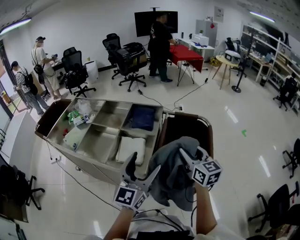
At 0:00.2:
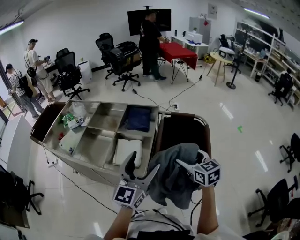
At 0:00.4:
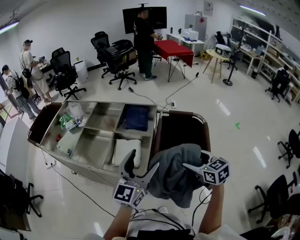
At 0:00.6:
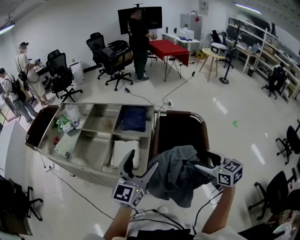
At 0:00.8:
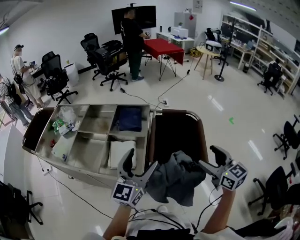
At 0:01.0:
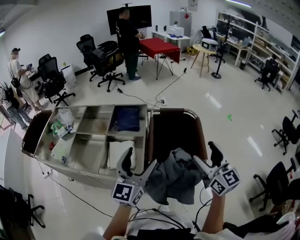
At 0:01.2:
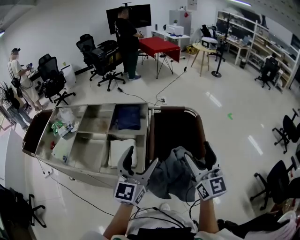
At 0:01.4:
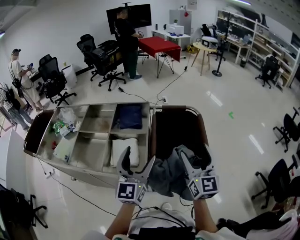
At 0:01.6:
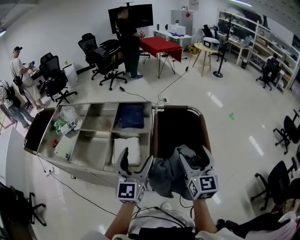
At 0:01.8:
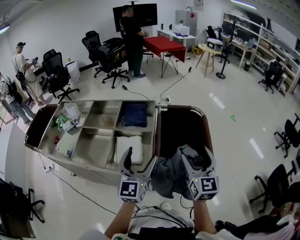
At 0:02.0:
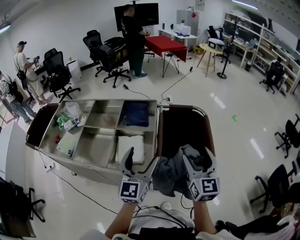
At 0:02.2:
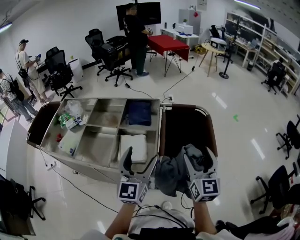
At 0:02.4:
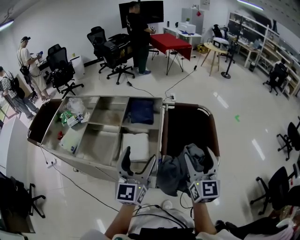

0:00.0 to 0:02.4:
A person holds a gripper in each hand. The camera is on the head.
0:00.0 to 0:01.2: The right gripper shifts roughly 10 cm upward and backward, and swivels about 30 degrees.
0:01.2 to 0:02.4: Both grippers travel together to the left, approximately 5 cm.

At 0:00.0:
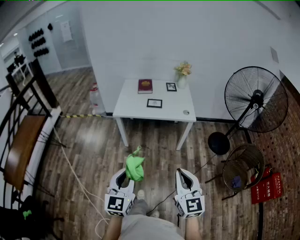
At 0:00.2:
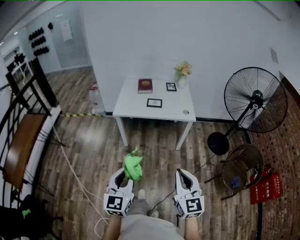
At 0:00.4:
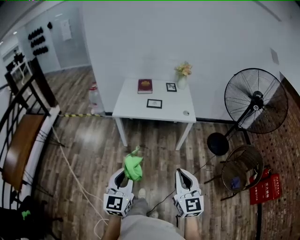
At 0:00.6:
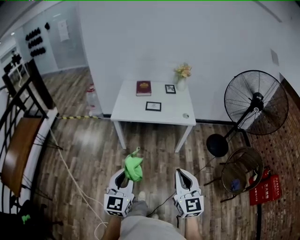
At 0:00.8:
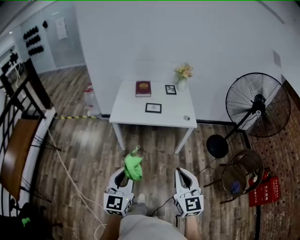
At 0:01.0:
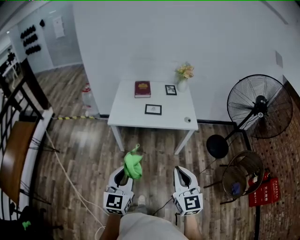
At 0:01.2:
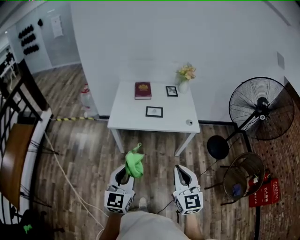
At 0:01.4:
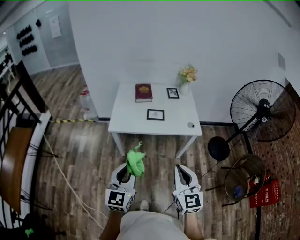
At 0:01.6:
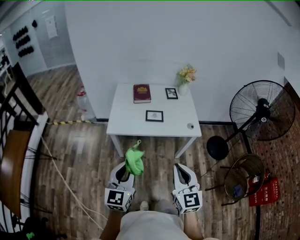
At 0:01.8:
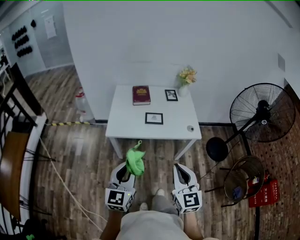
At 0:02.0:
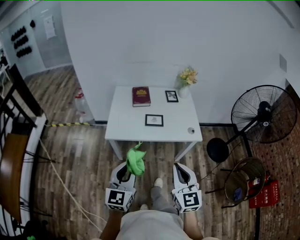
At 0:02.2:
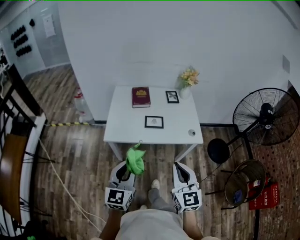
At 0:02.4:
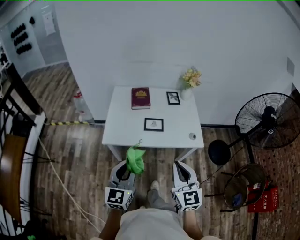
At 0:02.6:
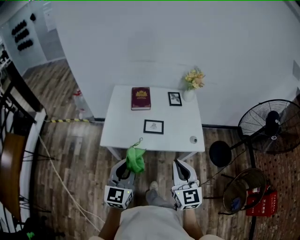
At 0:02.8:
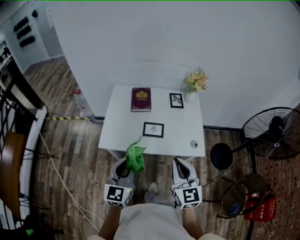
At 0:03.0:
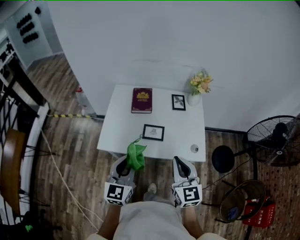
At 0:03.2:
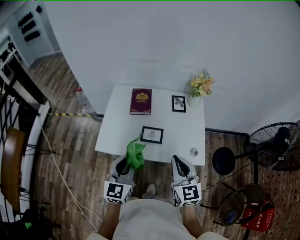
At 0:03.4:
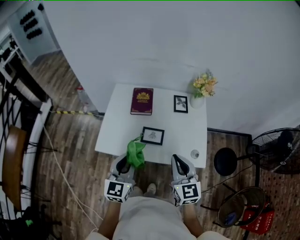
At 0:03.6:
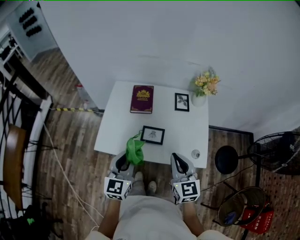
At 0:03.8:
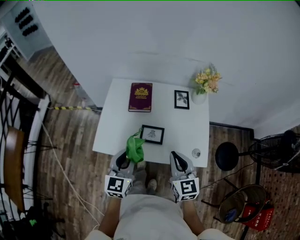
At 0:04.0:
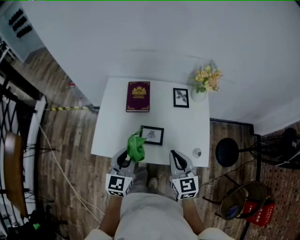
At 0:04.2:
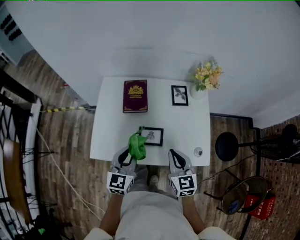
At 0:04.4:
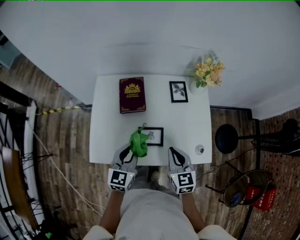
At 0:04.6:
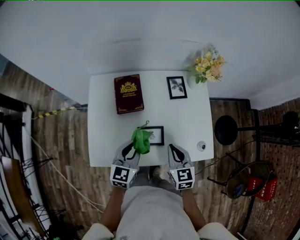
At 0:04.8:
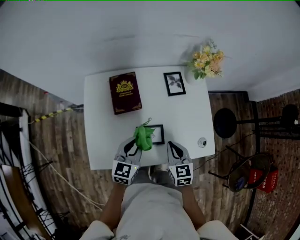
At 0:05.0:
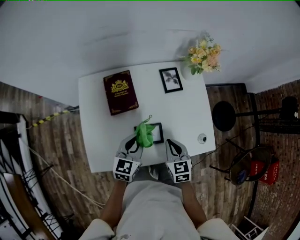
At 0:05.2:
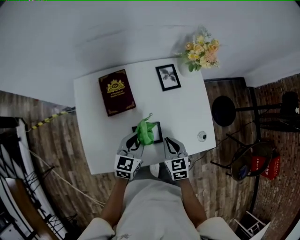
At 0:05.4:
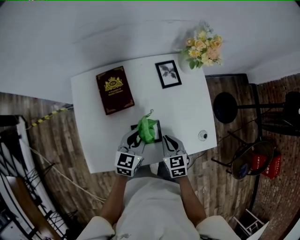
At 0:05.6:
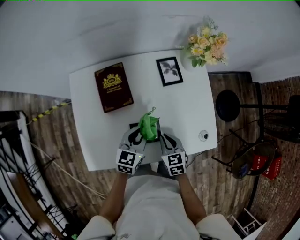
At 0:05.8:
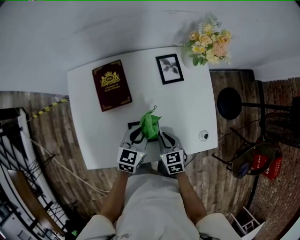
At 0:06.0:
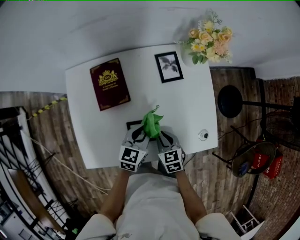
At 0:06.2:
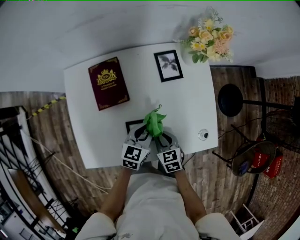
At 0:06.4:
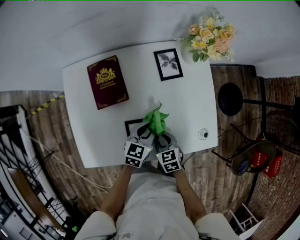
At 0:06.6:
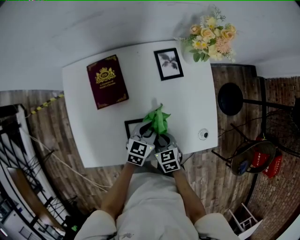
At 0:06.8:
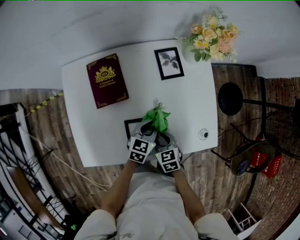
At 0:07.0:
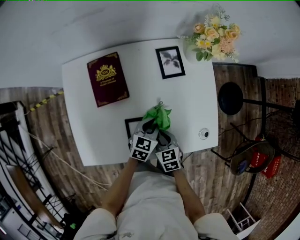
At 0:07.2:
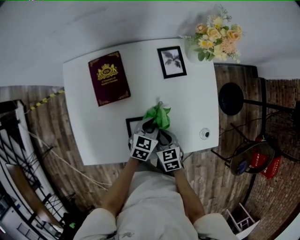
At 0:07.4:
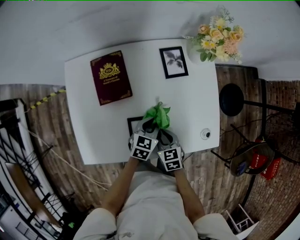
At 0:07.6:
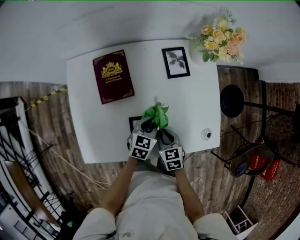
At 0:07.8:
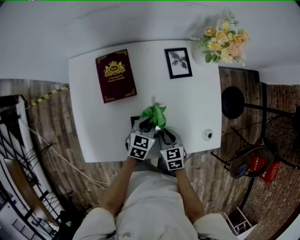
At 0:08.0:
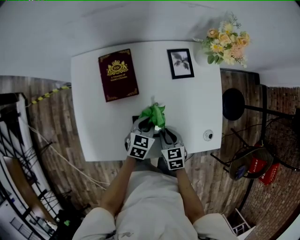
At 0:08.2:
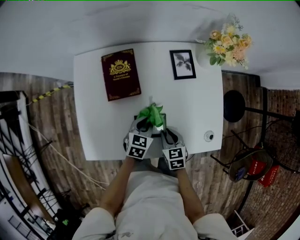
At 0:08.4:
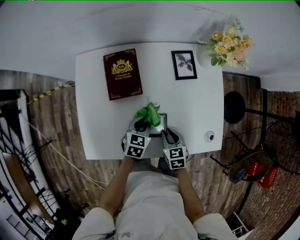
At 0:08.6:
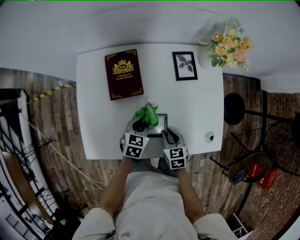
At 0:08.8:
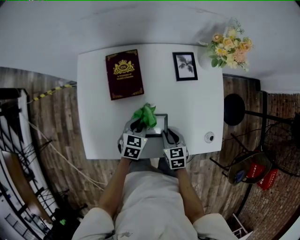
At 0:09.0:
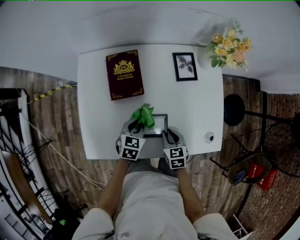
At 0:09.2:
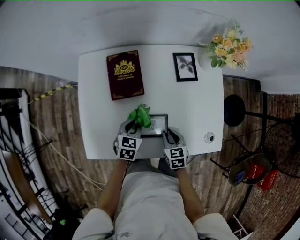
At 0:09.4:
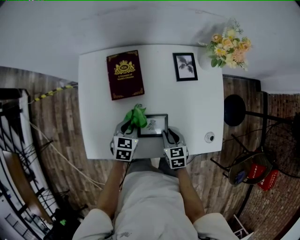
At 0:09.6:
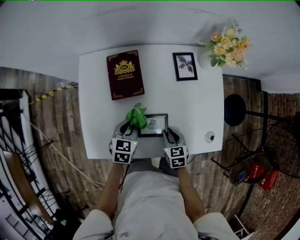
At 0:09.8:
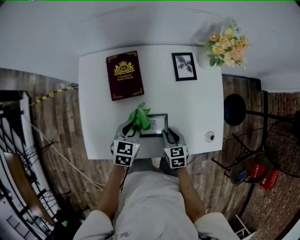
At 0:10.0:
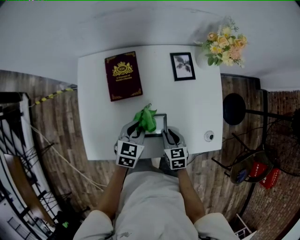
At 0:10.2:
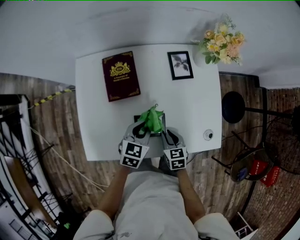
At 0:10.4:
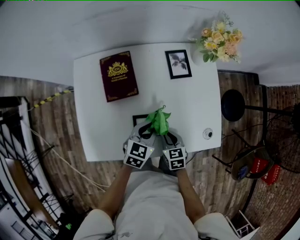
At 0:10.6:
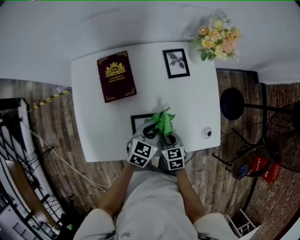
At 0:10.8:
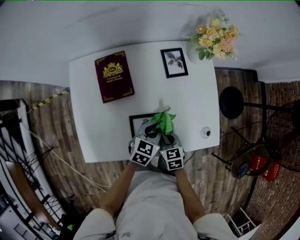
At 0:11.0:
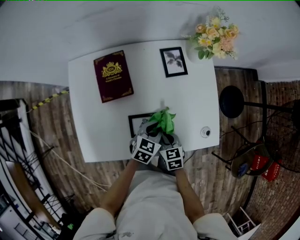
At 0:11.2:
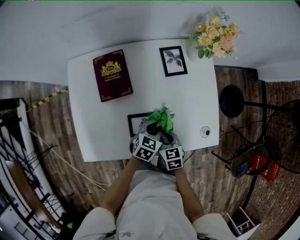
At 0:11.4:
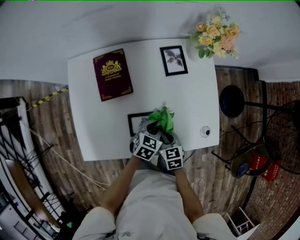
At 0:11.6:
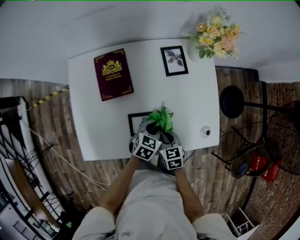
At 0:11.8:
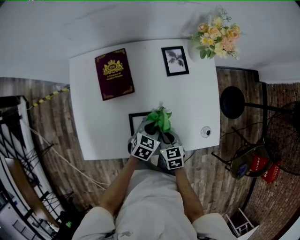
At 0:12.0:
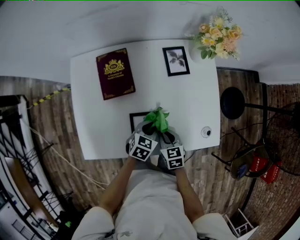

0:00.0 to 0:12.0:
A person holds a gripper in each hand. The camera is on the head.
0:00.0 to 0:01.6: The two grippers go approximately 25 cm forward.
0:01.6 to 0:03.0: The two grippers go approximately 25 cm forward.
0:03.0 to 0:04.4: Both grippers move forward and downward, about 25 cm.
0:04.4 to 0:06.0: The left gripper moves downward, forward and to the right, some 20 cm, and swivels some 20 degrees. The right gripper travels downward by about 20 cm, and changes its angle by approximately 20 degrees.
0:06.0 to 0:07.6: The left gripper moves downward, about 5 cm.
0:07.6 to 0:09.0: The left gripper goes some 10 cm to the left.
0:09.0 to 0:10.4: The left gripper is displaced to the right and upward by some 10 cm.
0:10.4 to 0:12.0: The left gripper is displaced downward by roughly 5 cm.

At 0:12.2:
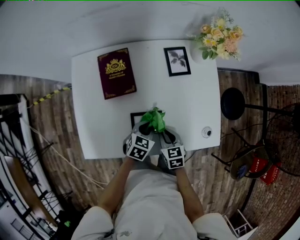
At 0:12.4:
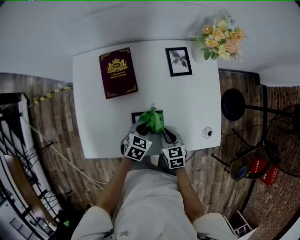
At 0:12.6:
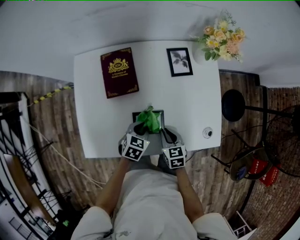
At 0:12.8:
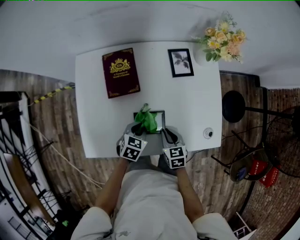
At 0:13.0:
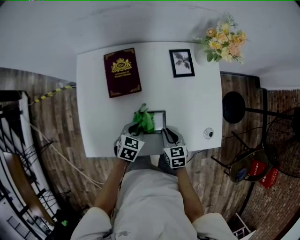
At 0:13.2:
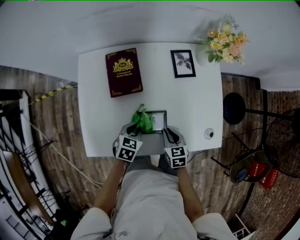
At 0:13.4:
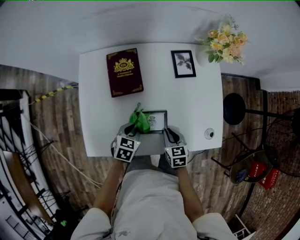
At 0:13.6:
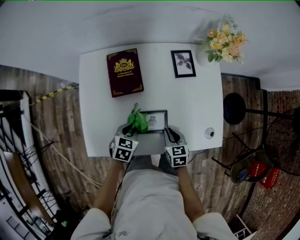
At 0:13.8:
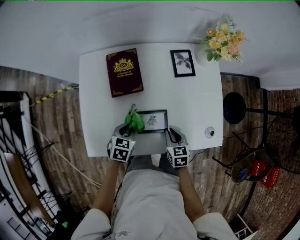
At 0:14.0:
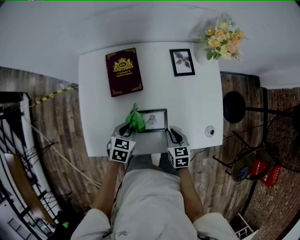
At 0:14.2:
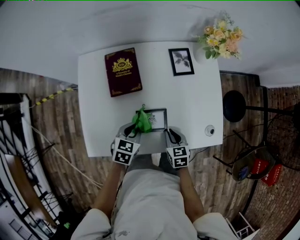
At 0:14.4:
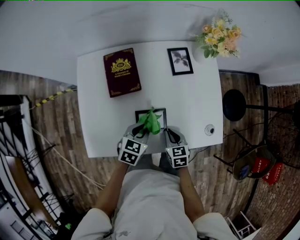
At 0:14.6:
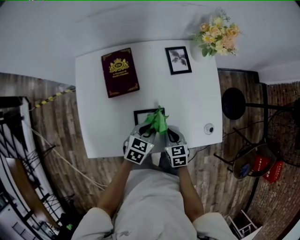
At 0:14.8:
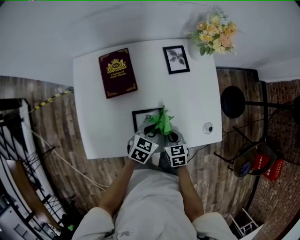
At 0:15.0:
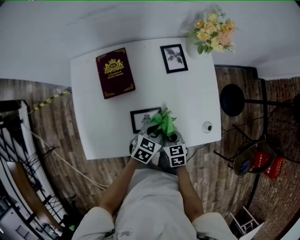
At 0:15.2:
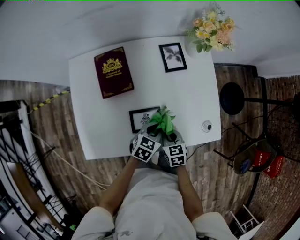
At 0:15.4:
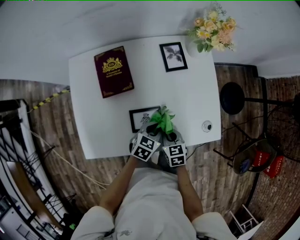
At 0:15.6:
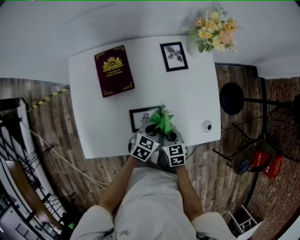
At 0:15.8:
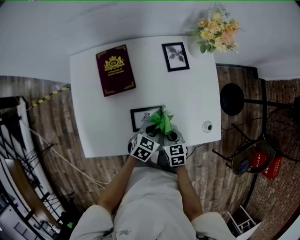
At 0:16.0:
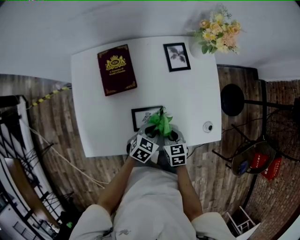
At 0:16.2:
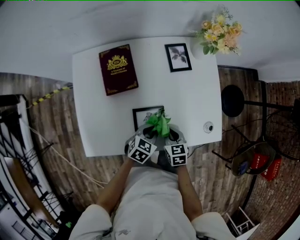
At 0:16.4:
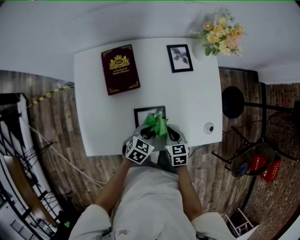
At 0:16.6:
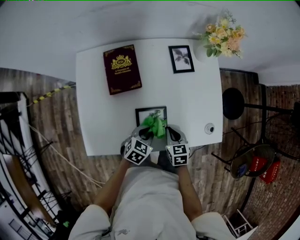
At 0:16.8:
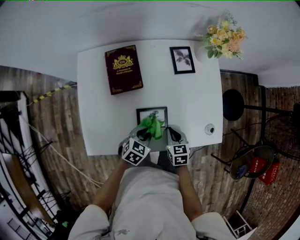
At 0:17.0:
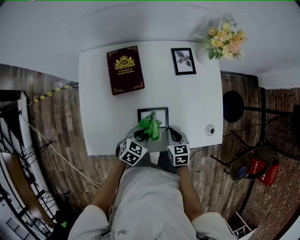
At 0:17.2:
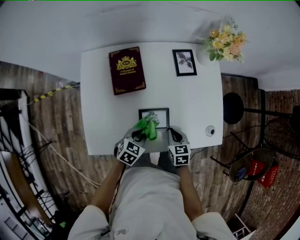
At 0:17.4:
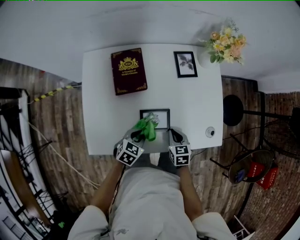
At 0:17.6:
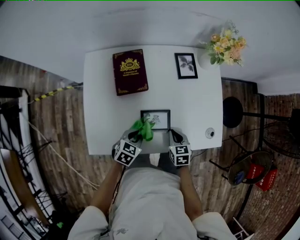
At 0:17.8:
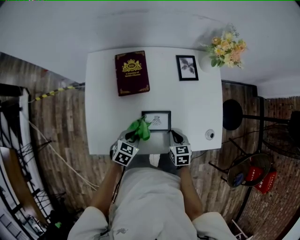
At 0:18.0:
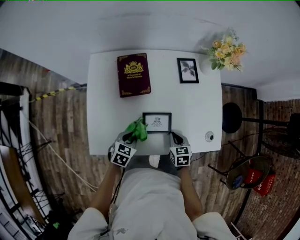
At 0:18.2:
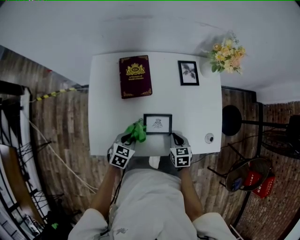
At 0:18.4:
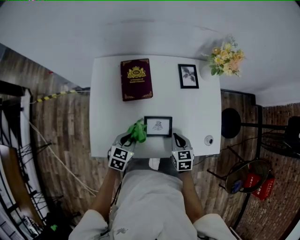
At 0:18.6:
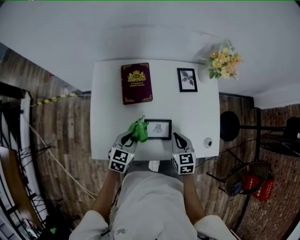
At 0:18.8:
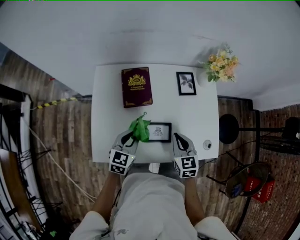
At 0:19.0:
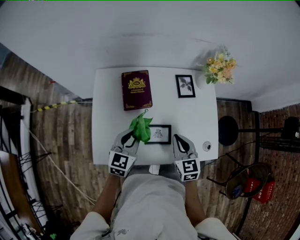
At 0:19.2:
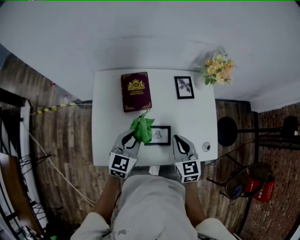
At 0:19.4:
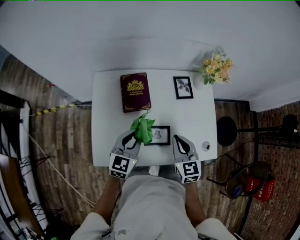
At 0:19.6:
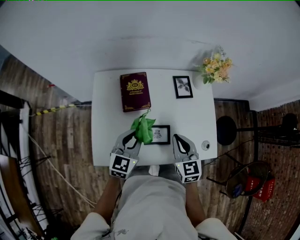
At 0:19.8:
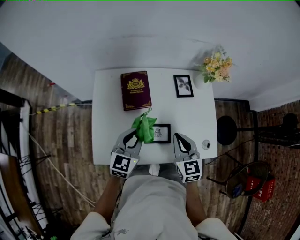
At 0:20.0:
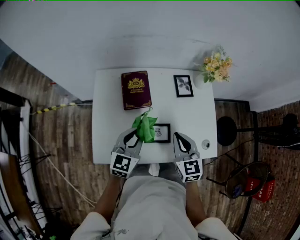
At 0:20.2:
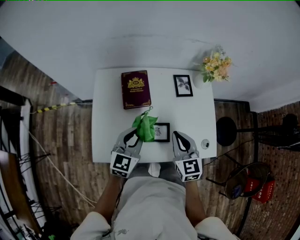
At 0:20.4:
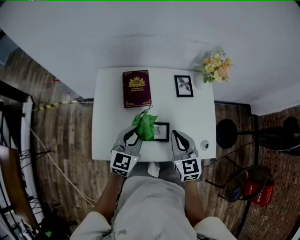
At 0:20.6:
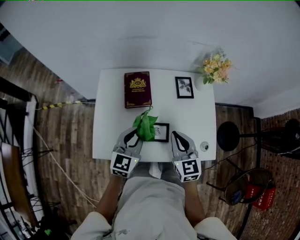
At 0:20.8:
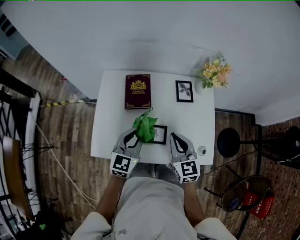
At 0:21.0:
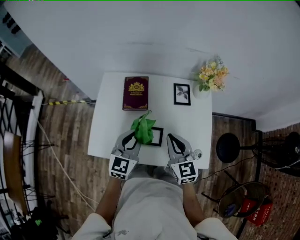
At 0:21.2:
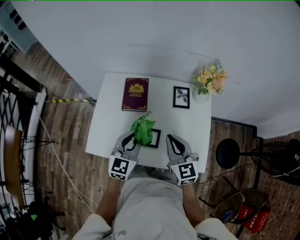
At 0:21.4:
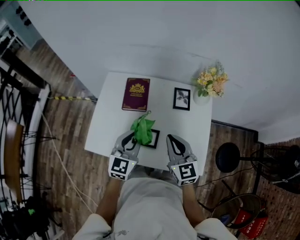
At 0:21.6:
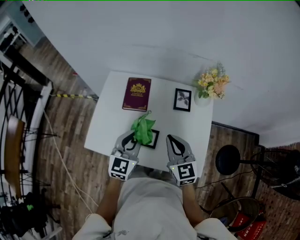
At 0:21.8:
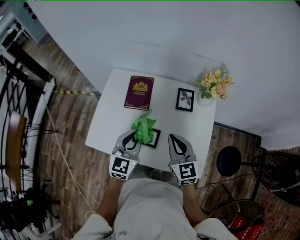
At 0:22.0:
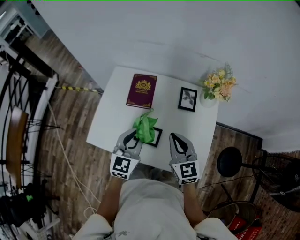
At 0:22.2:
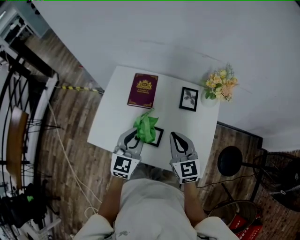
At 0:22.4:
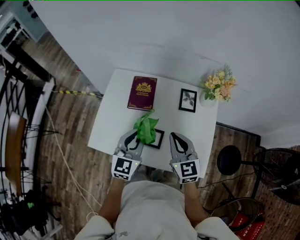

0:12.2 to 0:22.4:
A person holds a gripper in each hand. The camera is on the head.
0:12.2 to 0:13.6: The left gripper heads to the left, covering about 10 cm.
0:13.6 to 0:15.2: The left gripper goes about 15 cm to the right.
0:15.2 to 0:16.6: The left gripper heads to the left, covering roughly 5 cm.
0:16.6 to 0:18.0: The left gripper is displaced to the left by about 10 cm.
0:18.0 to 0:19.4: Both grippers travel together upward, approximately 20 cm. The right gripper swivels roughly 30 degrees; the left gripper tilts its fingers roughly 30 degrees upward.
0:19.4 to 0:21.0: The left gripper travels to the right and upward by approximately 10 cm. The right gripper moves upward, approximately 5 cm.
0:21.0 to 0:22.4: There are only small adjustments of the grippers.
